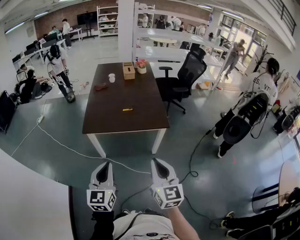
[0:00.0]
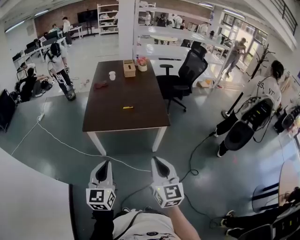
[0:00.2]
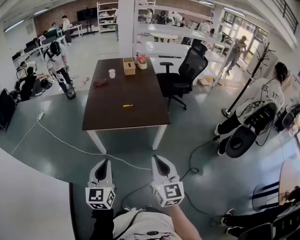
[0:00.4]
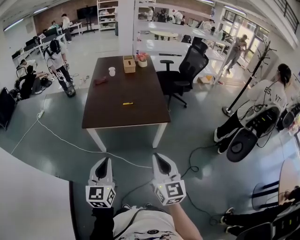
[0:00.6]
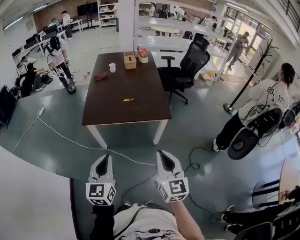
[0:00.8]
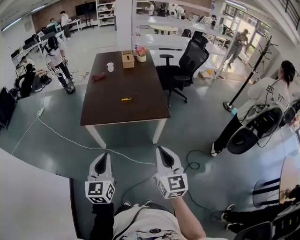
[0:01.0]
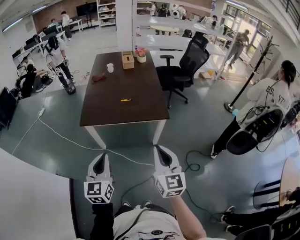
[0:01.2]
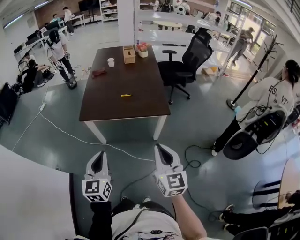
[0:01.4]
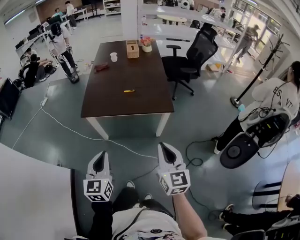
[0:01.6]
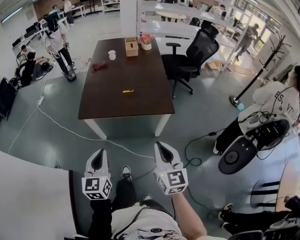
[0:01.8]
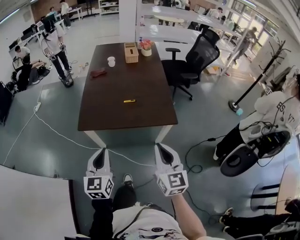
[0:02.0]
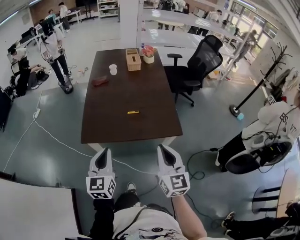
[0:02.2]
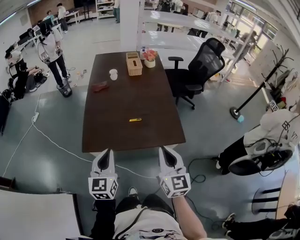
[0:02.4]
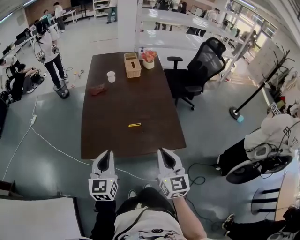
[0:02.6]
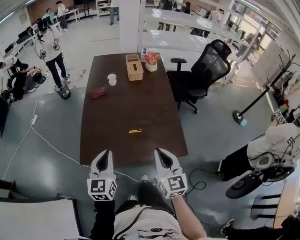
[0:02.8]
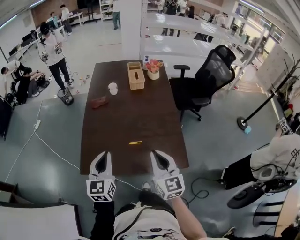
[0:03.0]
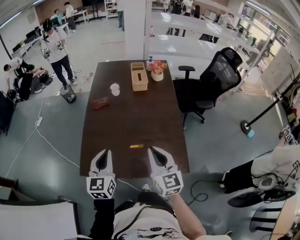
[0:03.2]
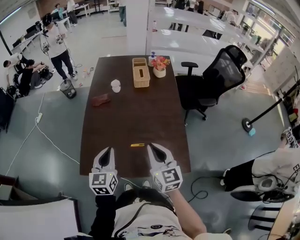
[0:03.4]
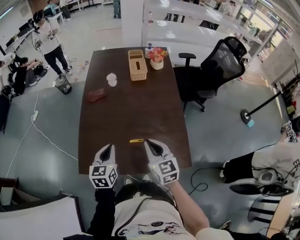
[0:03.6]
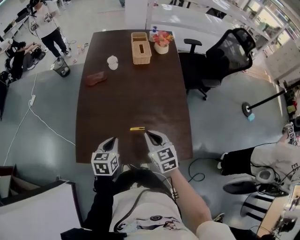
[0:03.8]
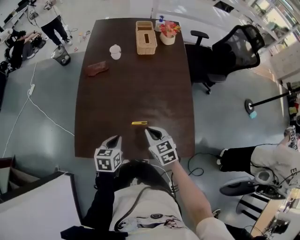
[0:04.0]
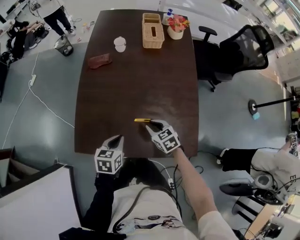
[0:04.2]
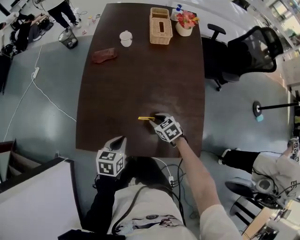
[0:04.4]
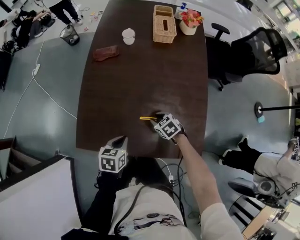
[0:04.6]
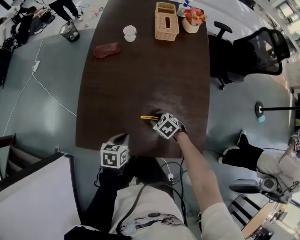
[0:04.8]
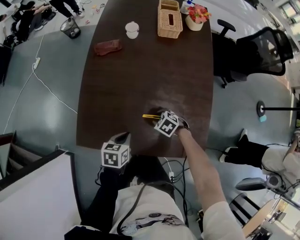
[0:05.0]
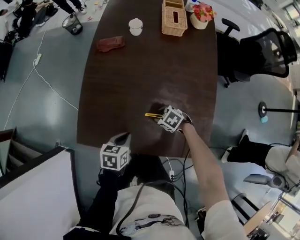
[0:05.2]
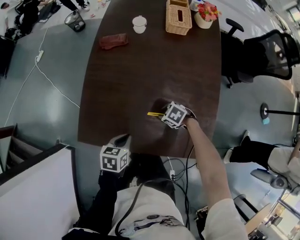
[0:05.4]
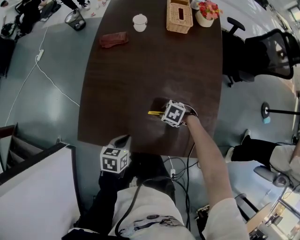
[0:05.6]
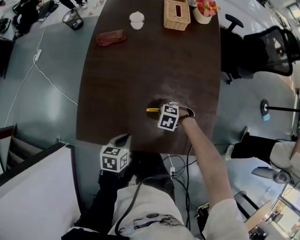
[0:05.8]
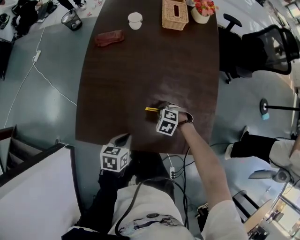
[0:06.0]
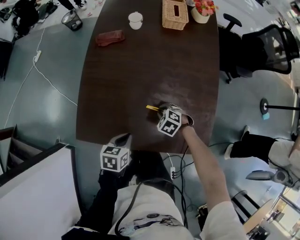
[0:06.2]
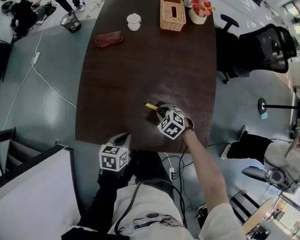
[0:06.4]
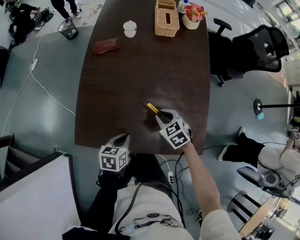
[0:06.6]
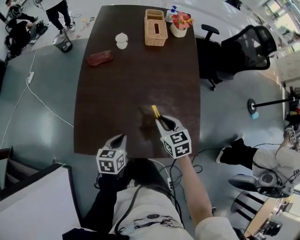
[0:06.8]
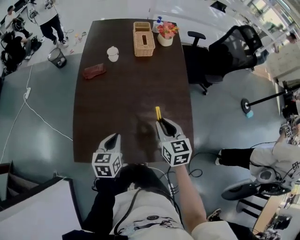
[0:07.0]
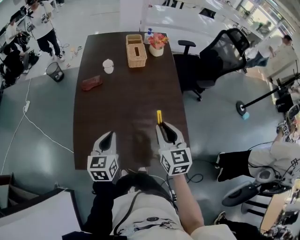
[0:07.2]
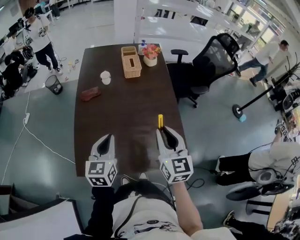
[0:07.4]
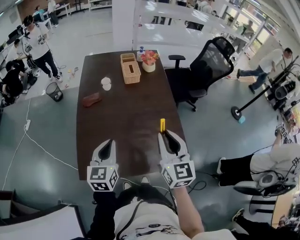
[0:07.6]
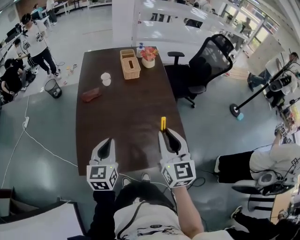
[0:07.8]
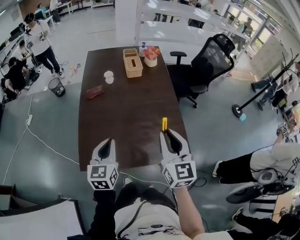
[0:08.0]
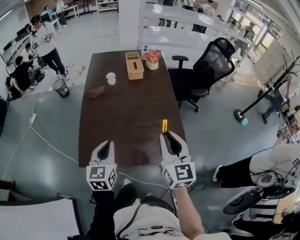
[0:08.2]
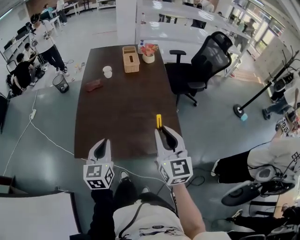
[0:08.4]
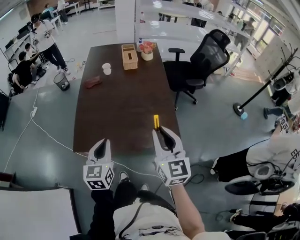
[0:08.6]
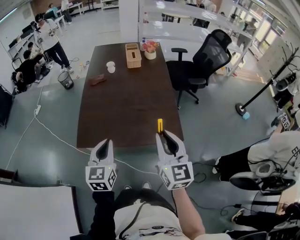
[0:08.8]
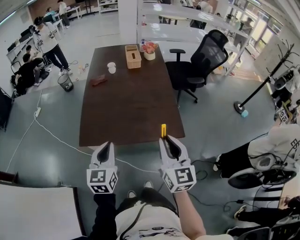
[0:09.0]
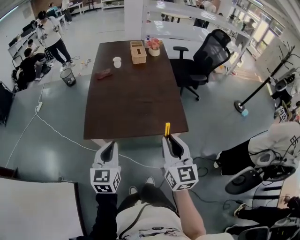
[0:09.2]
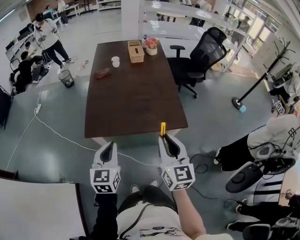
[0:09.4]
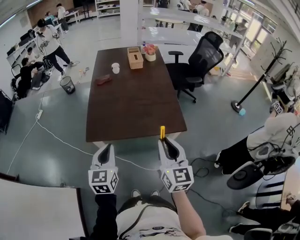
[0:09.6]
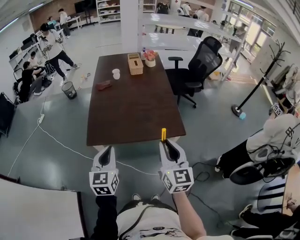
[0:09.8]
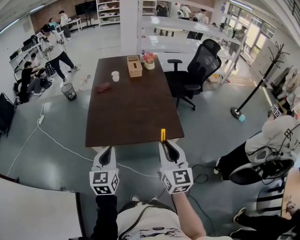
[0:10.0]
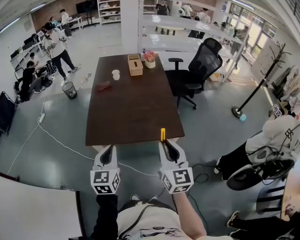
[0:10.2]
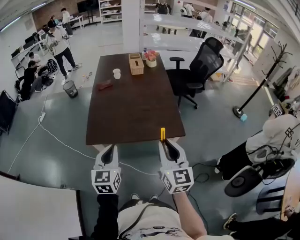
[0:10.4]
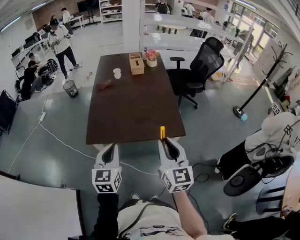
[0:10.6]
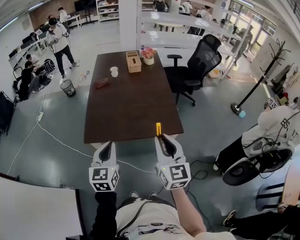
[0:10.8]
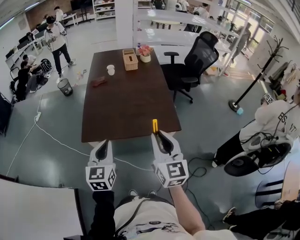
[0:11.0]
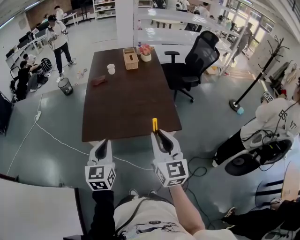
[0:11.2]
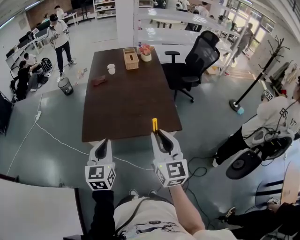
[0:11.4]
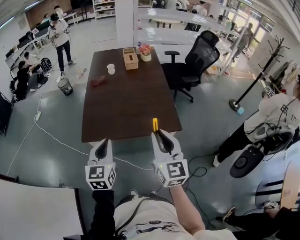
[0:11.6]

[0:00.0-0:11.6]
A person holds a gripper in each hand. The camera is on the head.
0:00.0 to 0:01.4: The right gripper ends up some 5 cm from where it was.
0:01.4 to 0:02.8: Both grippers travel together forward, some 35 cm.
0:02.8 to 0:04.4: The left gripper goes approximately 20 cm downward, and angles its fingers downward, by approximately 40 degrees; the right gripper is displaced downward and forward by roughly 35 cm, tilts its fingers about 50 degrees downward, and opens its fingers.
0:04.4 to 0:05.8: Both grippers travel together downward, approximately 5 cm. The right gripper rotates roughly 50 degrees.
0:05.8 to 0:07.2: The left gripper goes approximately 15 cm upward, and changes its angle by approximately 40 degrees, while the right gripper travels upward by some 30 cm, and tilts its fingers some 60 degrees upward.
0:07.2 to 0:08.8: The right gripper travels backward and upward by roughly 25 cm. The left gripper heads backward, covering roughly 20 cm.
0:08.8 to 0:10.2: The two grippers go about 10 cm backward.
0:10.2 to 0:11.6: The grippers move only a little.

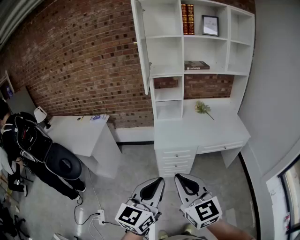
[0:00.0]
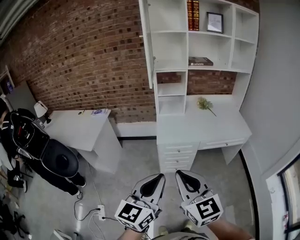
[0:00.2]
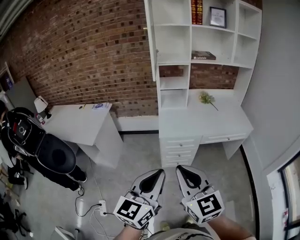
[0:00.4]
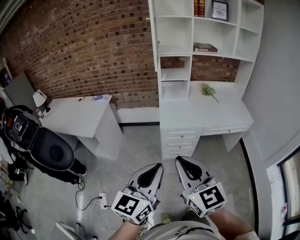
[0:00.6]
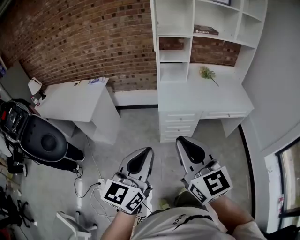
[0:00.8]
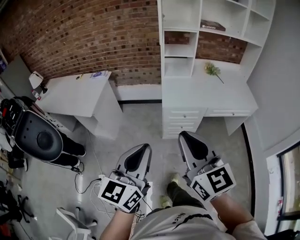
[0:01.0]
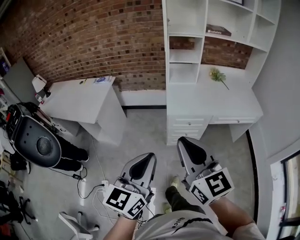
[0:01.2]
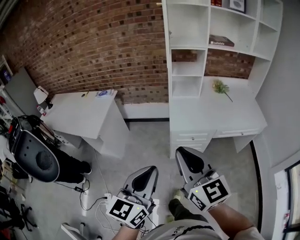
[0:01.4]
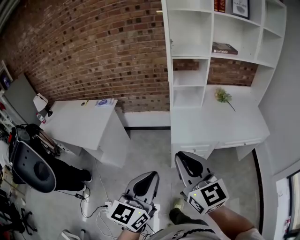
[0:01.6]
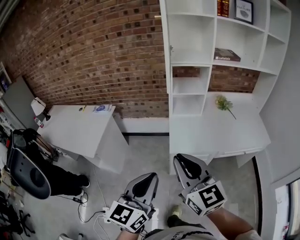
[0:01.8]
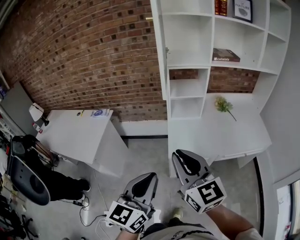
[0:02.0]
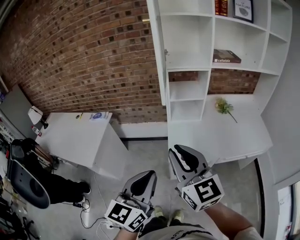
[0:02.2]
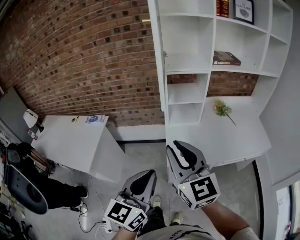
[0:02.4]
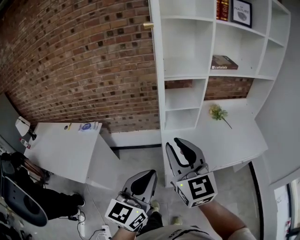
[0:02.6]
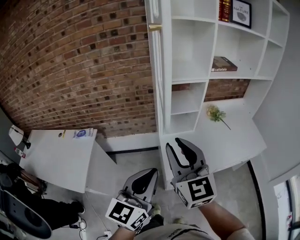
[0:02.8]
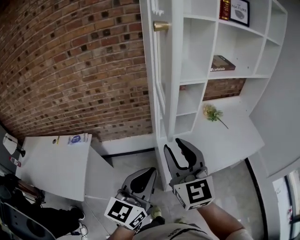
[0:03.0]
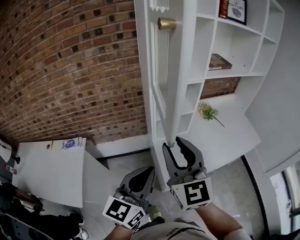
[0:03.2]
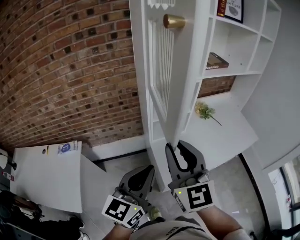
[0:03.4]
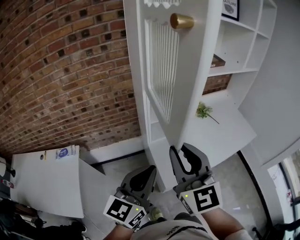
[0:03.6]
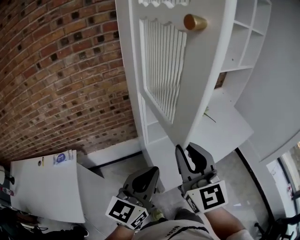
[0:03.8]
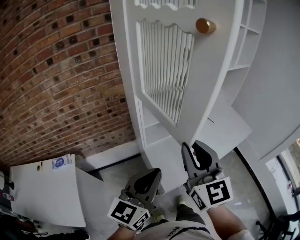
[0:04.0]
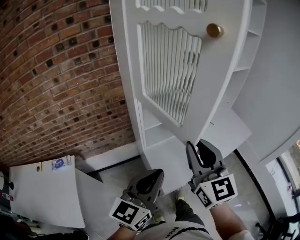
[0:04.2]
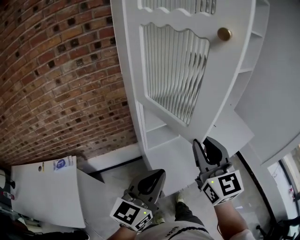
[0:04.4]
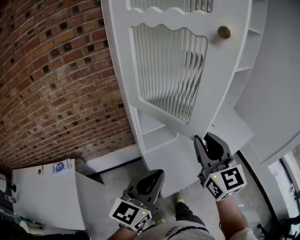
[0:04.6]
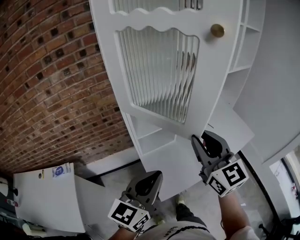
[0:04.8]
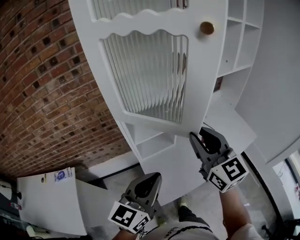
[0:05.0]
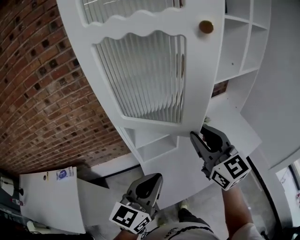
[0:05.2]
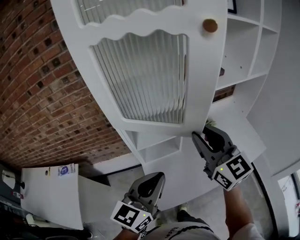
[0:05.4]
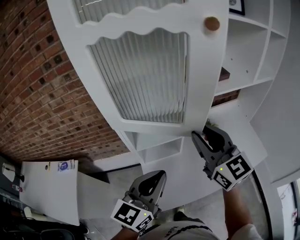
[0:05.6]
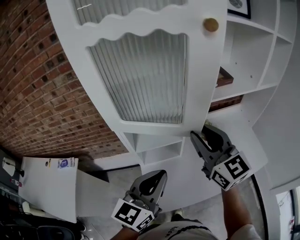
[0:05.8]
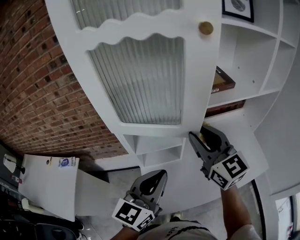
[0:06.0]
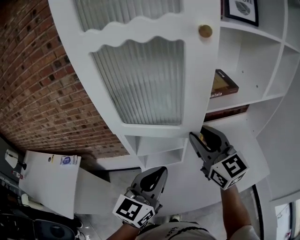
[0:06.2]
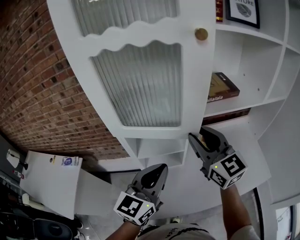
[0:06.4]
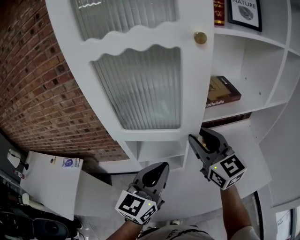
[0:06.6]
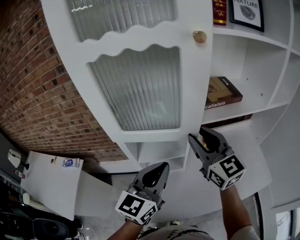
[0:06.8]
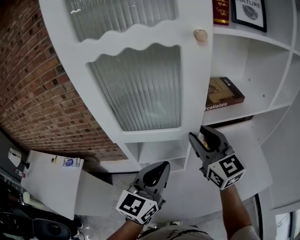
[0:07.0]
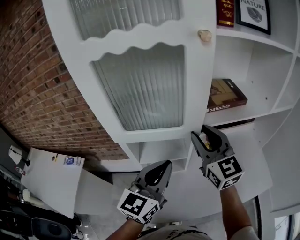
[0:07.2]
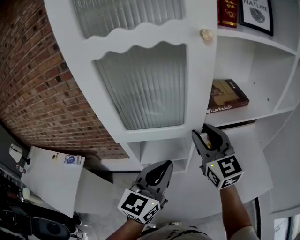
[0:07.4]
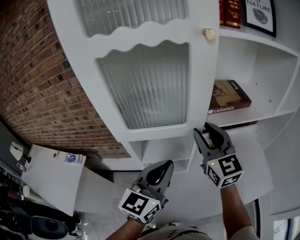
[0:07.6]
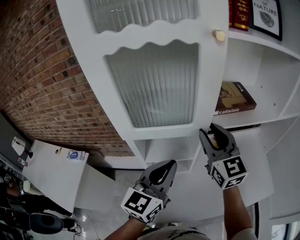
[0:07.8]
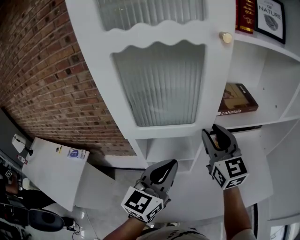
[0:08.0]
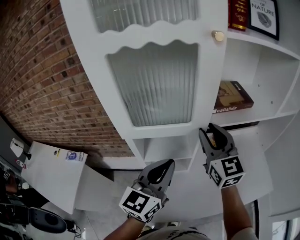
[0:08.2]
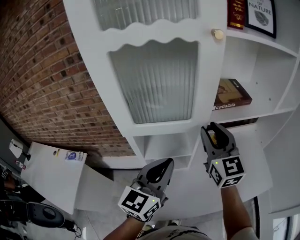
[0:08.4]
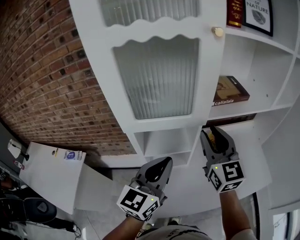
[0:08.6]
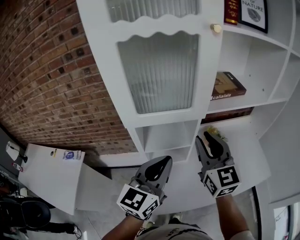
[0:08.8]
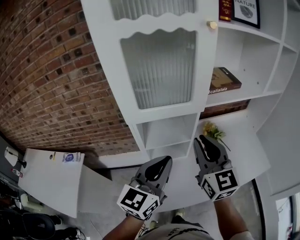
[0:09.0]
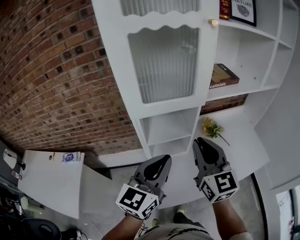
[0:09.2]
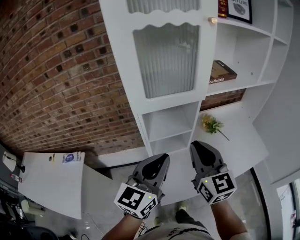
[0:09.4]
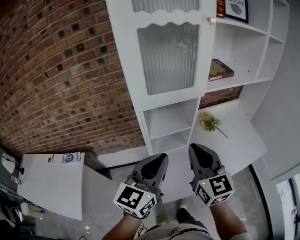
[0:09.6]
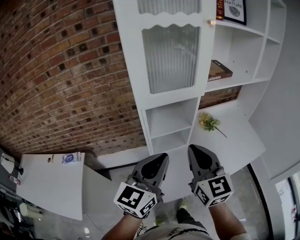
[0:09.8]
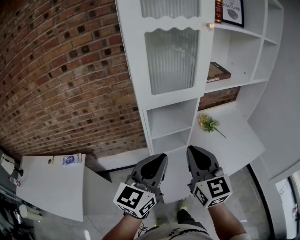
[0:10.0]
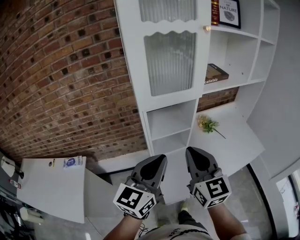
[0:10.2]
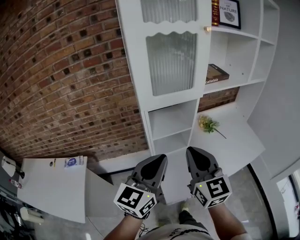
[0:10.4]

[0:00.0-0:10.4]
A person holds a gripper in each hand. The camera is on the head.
0:00.0 to 0:01.4: The left gripper shifts roughly 15 cm to the left and forward. The right gripper heads forward and to the left, covering approximately 15 cm.
0:01.4 to 0:03.0: Both grippers move forward, about 40 cm. The right gripper rotates about 20 degrees, and opens its fingers.
0:03.0 to 0:04.4: The right gripper is displaced forward and to the right by roughly 15 cm, while the left gripper heads forward, covering roughly 10 cm.
0:04.4 to 0:06.0: The right gripper moves forward, roughly 25 cm, and changes its angle by some 30 degrees, while the left gripper shifts approximately 20 cm forward and to the right.
0:06.0 to 0:07.4: Both grippers travel together forward, roughly 10 cm.
0:07.4 to 0:09.0: The left gripper shifts roughly 5 cm backward; the right gripper is displaced backward by about 10 cm.
0:09.0 to 0:10.4: Both grippers travel together backward and to the left, approximately 15 cm.

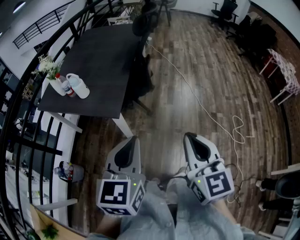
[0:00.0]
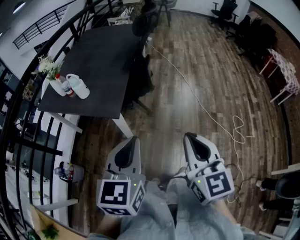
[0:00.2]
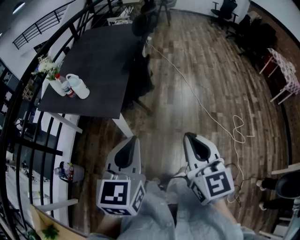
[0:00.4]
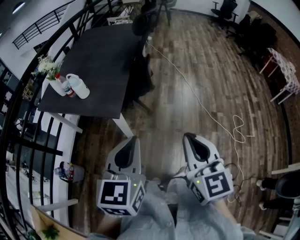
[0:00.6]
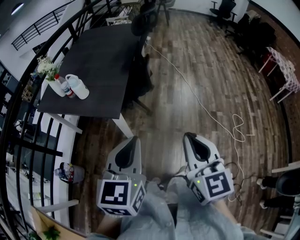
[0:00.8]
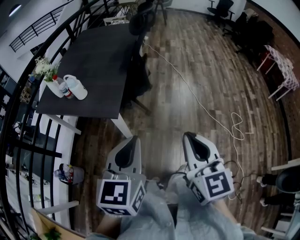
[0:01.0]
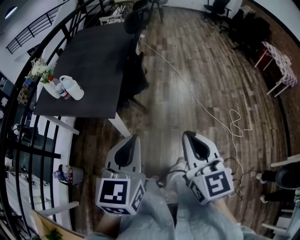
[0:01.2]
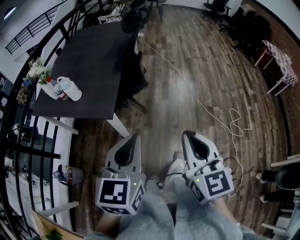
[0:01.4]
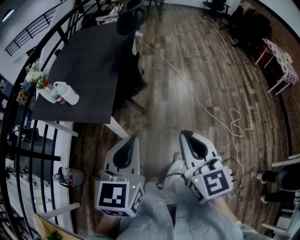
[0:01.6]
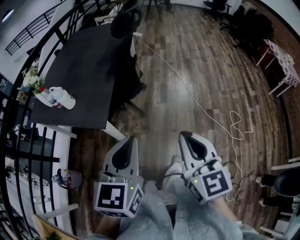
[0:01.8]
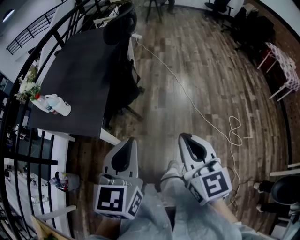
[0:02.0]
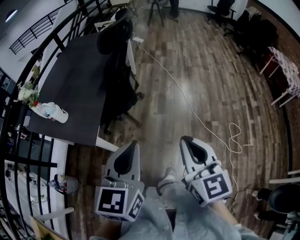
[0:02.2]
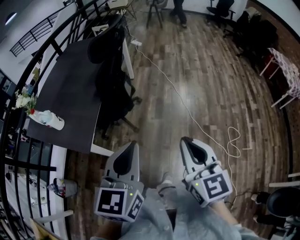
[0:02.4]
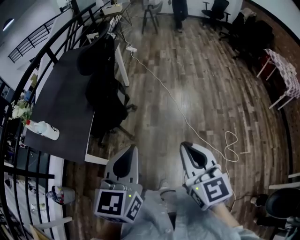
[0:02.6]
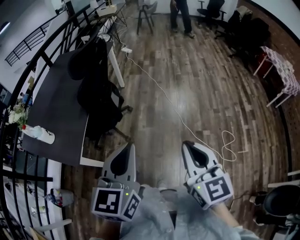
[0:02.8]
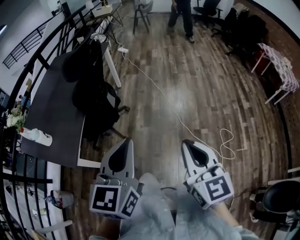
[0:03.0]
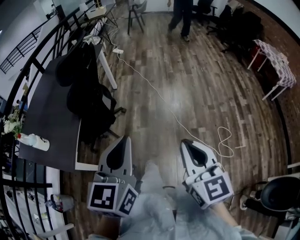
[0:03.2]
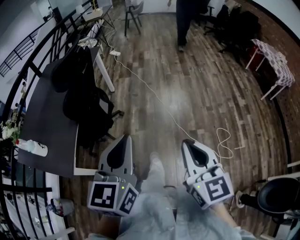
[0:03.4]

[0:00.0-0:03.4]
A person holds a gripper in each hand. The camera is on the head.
0:00.0 to 0:01.6: The grippers move only a little.
0:01.6 to 0:03.4: Both grippers travel together to the right and forward, about 35 cm.
